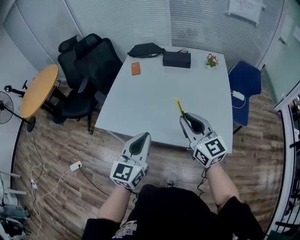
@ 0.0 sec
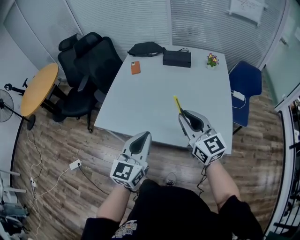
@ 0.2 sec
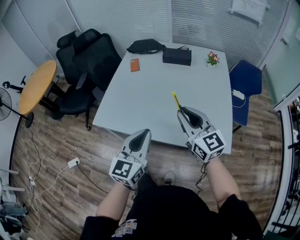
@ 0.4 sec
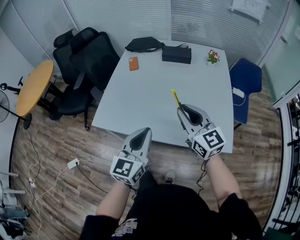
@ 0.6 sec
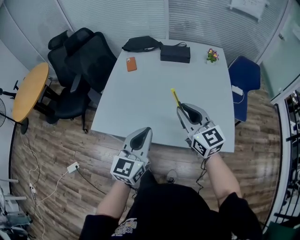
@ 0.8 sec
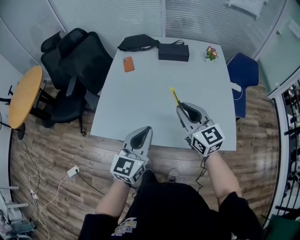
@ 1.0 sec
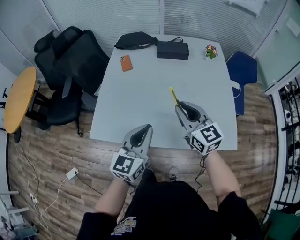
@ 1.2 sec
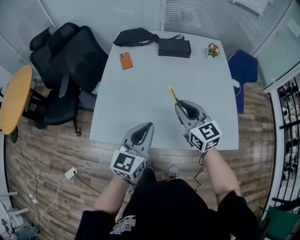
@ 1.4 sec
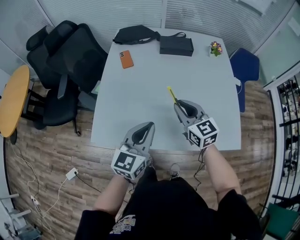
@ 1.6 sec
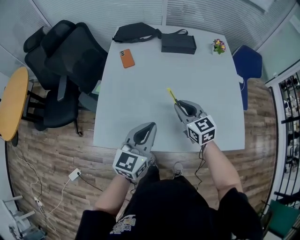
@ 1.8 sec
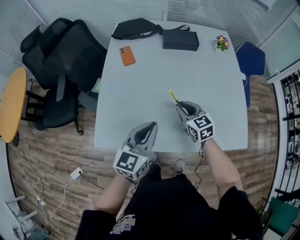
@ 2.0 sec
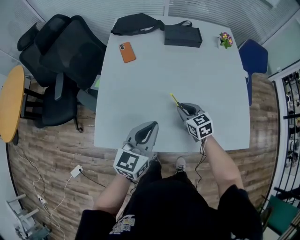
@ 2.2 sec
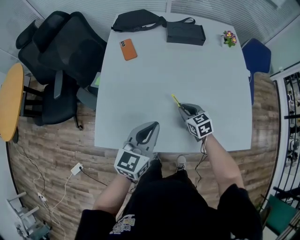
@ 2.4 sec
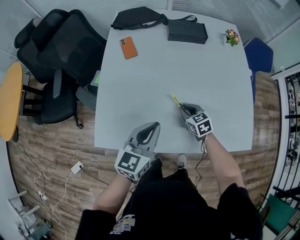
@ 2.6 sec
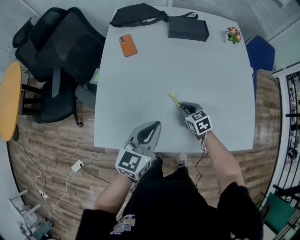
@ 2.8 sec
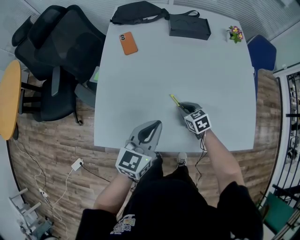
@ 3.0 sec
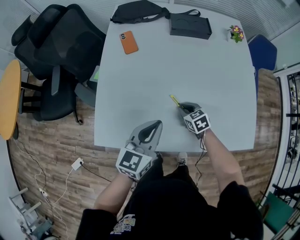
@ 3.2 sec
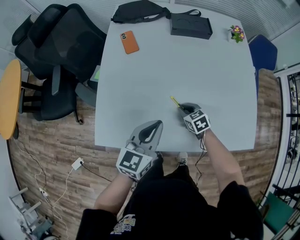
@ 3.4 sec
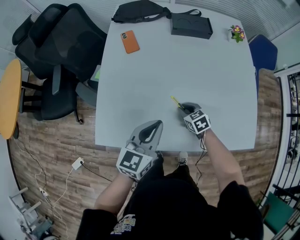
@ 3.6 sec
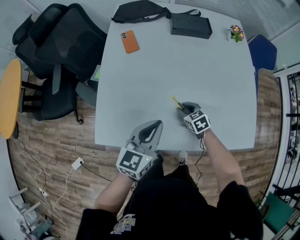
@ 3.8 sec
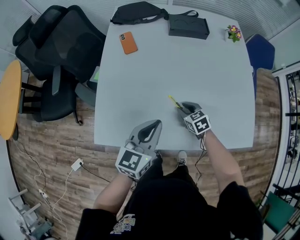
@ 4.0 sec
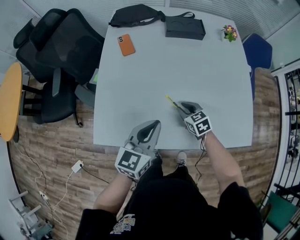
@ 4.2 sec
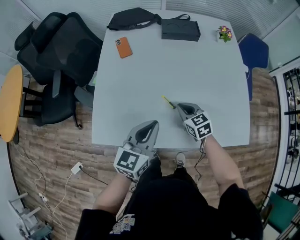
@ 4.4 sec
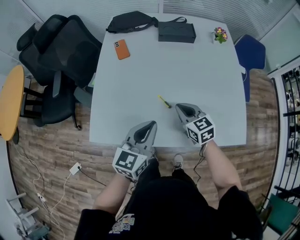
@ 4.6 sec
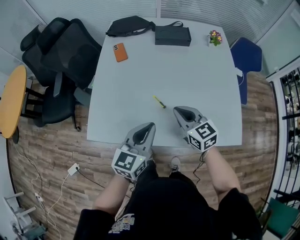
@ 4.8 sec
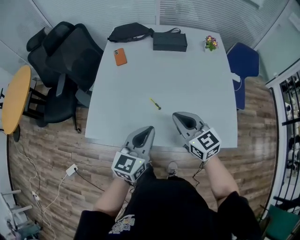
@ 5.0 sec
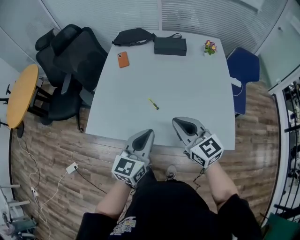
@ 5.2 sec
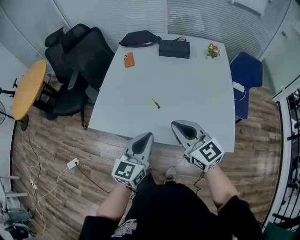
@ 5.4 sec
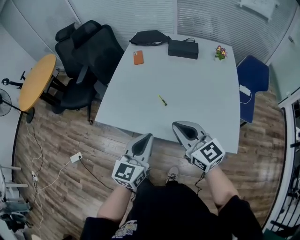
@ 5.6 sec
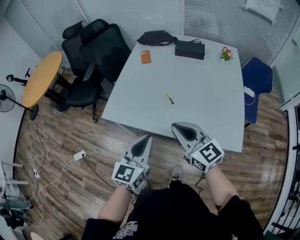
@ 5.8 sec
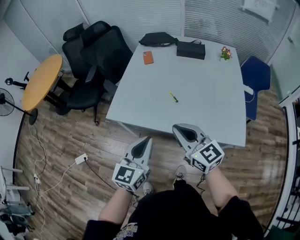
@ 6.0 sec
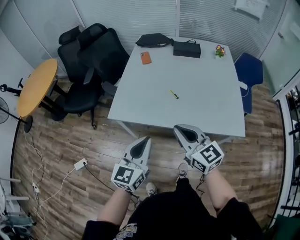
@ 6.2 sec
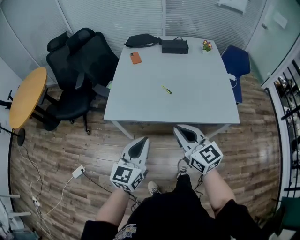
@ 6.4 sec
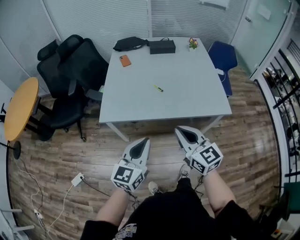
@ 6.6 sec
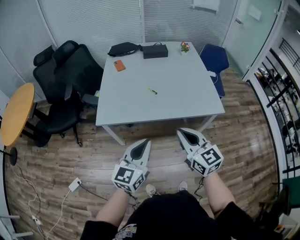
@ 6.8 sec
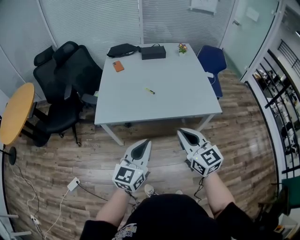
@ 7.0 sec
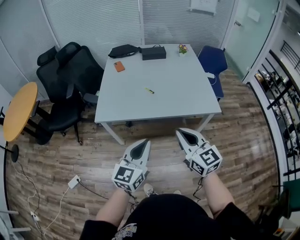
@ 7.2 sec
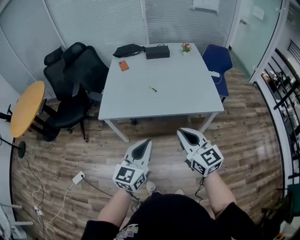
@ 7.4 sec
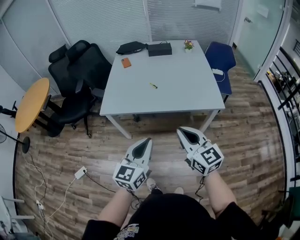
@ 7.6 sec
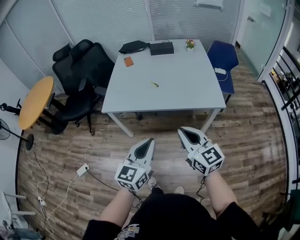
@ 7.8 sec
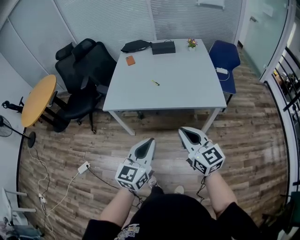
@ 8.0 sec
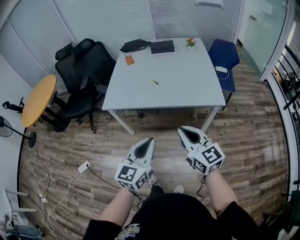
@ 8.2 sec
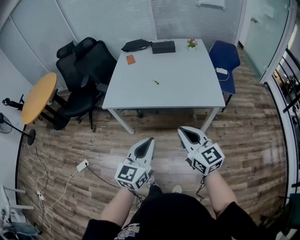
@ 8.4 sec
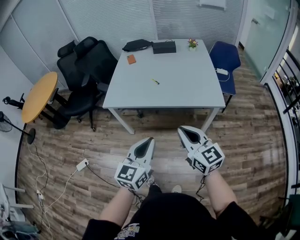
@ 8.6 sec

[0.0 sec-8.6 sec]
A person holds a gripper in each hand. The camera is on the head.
0.0 sec to 1.4 sec: The right gripper goes some 20 cm forward, to the left and downward; the left gripper heads forward and to the left, covering approximately 15 cm.
1.4 sec to 2.8 sec: The left gripper is displaced downward and forward by approximately 10 cm. Meanwhile the right gripper moves downward, approximately 30 cm, and points its fingers roughly 40 degrees further downward.
2.8 sec to 4.4 sec: The right gripper moves upward, some 5 cm.
4.4 sec to 5.8 sec: The left gripper moves backward, roughly 20 cm, and changes its angle by some 20 degrees. The right gripper is displaced upward and backward by approximately 35 cm, and tilts its fingers approximately 30 degrees upward.
5.8 sec to 7.2 sec: The right gripper shifts by roughly 20 cm, and changes its angle by approximately 30 degrees. The left gripper ends up approximately 20 cm from where it was, and changes its angle by some 20 degrees.
7.2 sec to 8.6 sec: The two grippers go roughly 10 cm backward and to the right.

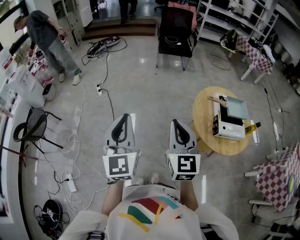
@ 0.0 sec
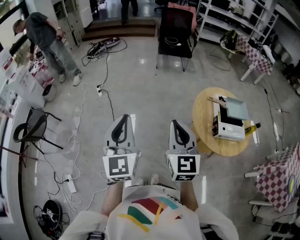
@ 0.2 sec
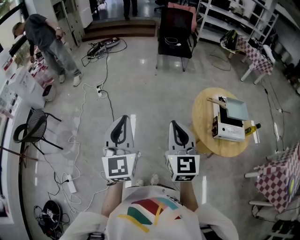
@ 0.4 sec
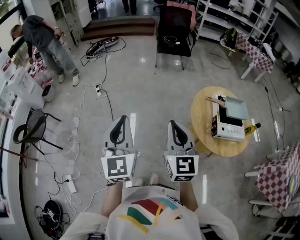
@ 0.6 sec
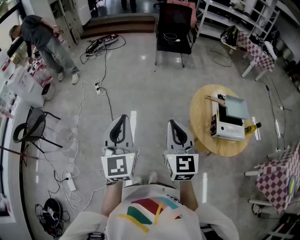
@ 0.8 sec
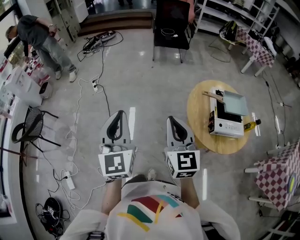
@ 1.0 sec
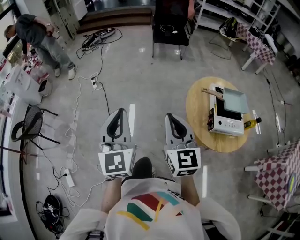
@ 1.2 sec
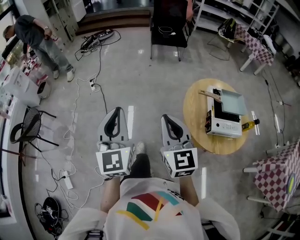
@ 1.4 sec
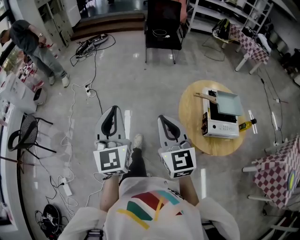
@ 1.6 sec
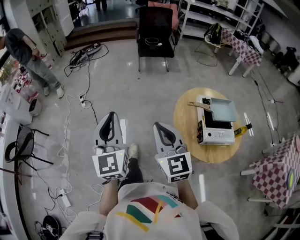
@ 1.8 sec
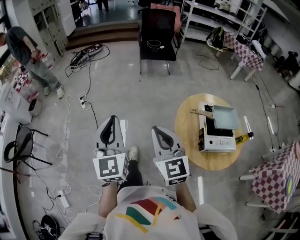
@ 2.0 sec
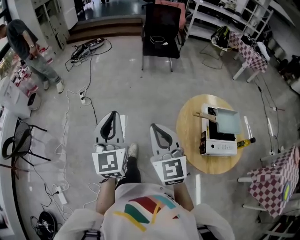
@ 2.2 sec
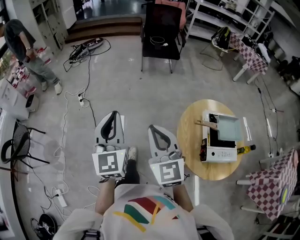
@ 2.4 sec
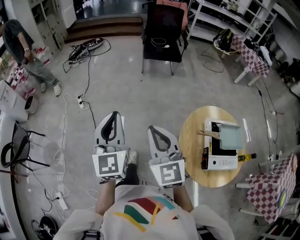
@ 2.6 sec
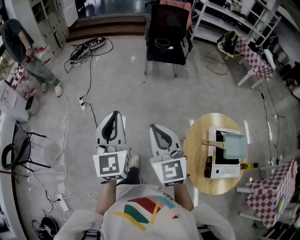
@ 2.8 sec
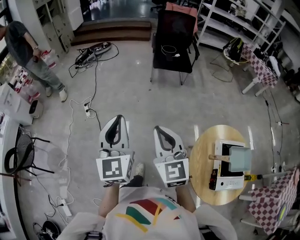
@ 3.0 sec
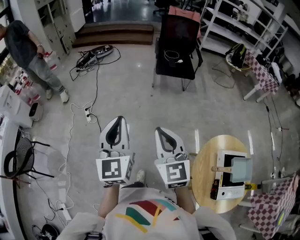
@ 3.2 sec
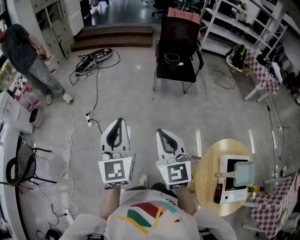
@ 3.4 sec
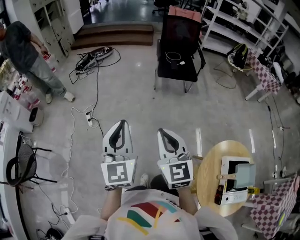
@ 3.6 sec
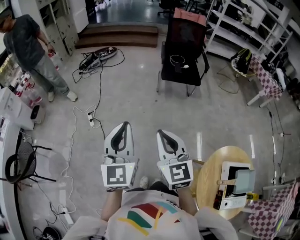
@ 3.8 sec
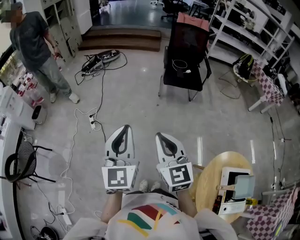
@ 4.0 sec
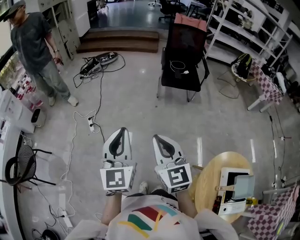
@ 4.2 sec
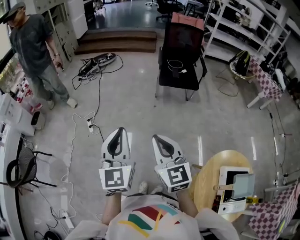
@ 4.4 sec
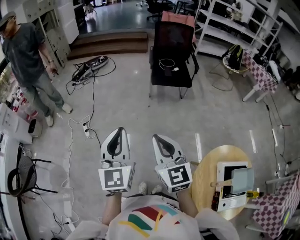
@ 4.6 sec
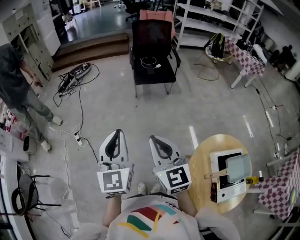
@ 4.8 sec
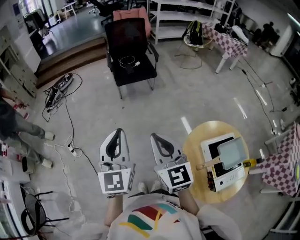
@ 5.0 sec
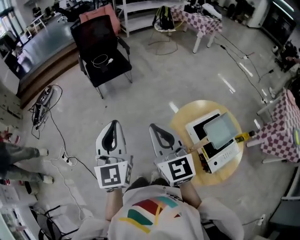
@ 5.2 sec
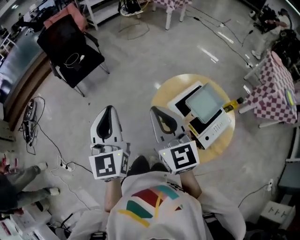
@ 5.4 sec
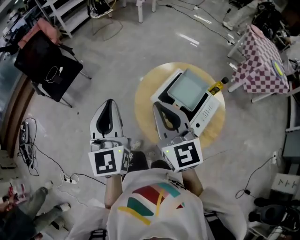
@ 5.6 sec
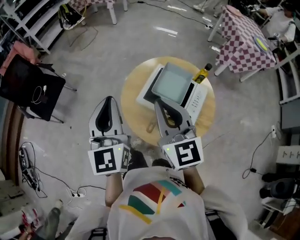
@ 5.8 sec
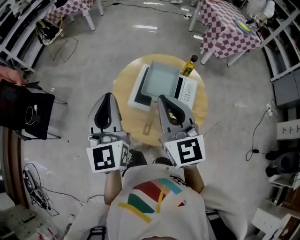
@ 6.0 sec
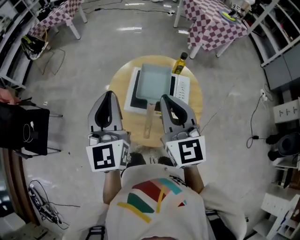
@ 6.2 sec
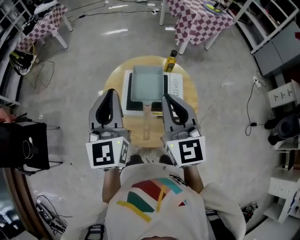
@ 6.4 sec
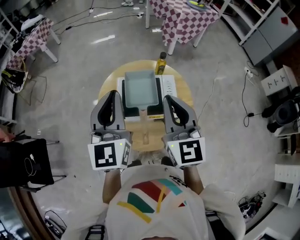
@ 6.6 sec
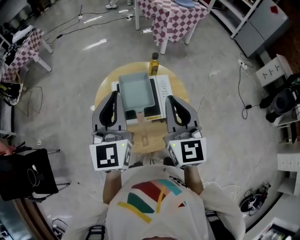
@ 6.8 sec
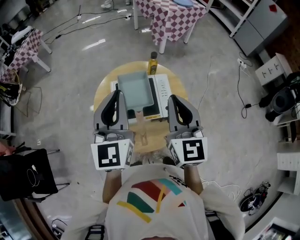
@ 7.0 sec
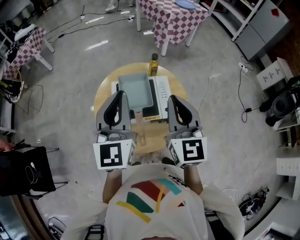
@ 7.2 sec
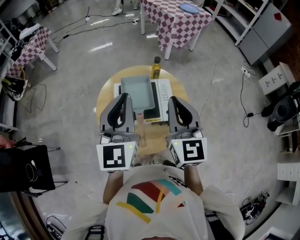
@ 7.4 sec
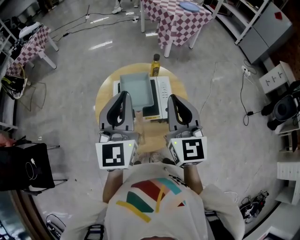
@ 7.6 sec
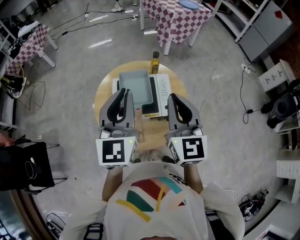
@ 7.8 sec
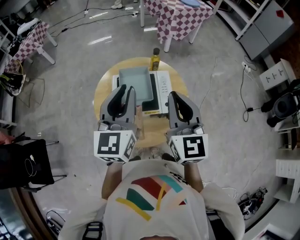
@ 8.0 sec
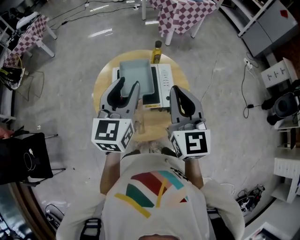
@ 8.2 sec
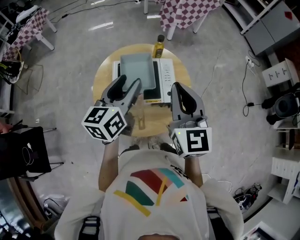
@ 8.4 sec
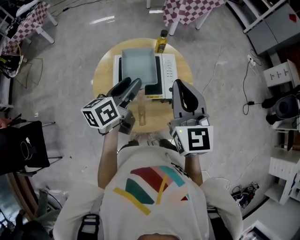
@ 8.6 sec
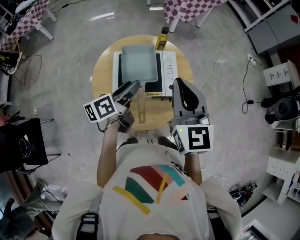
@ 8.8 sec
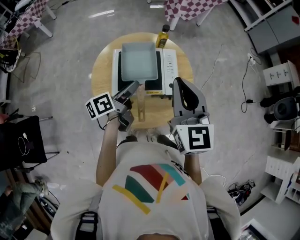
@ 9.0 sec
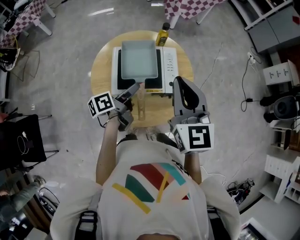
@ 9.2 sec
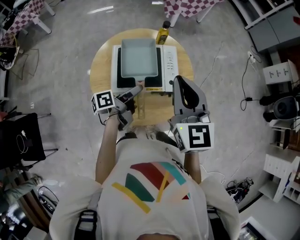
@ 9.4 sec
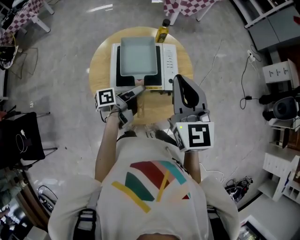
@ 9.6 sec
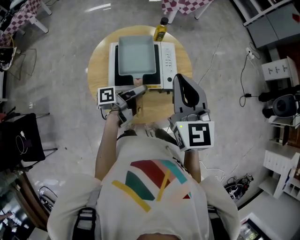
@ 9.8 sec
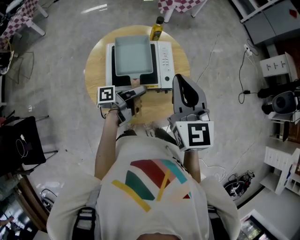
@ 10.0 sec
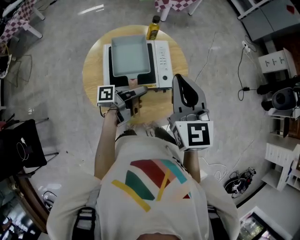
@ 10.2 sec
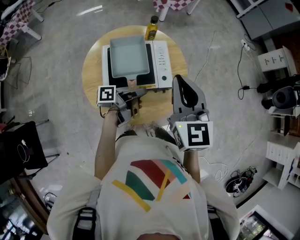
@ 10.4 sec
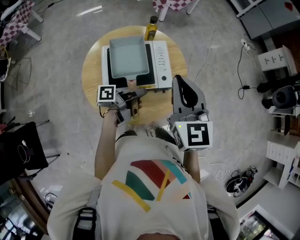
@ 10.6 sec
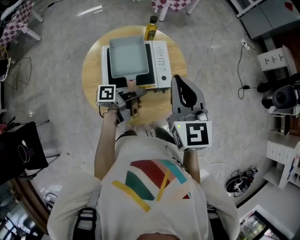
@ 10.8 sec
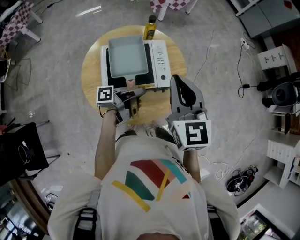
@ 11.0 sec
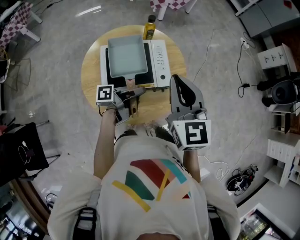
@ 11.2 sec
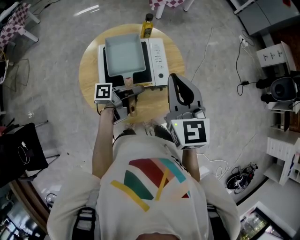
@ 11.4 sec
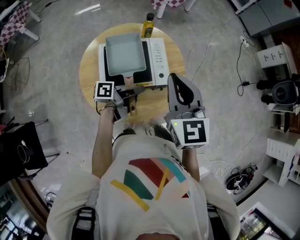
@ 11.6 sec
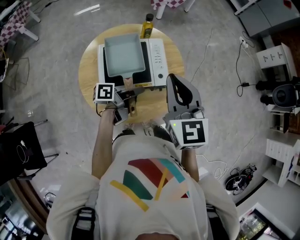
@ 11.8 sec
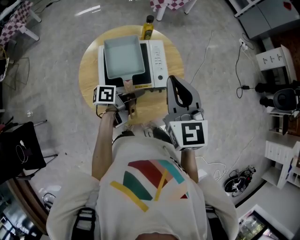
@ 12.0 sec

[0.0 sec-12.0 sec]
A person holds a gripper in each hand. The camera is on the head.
0.0 sec to 1.6 sec: The right gripper moves to the right, some 5 cm, while the left gripper moves to the right and forward, about 10 cm.
1.6 sec to 3.0 sec: Both grippers travel together forward, approximately 30 cm.
3.0 sec to 4.4 sec: The two grippers go approximately 15 cm forward.
4.4 sec to 6.0 sec: The two grippers travel together, roughly 60 cm. The right gripper swivels some 80 degrees; the left gripper turns by roughly 80 degrees.
6.0 sec to 7.6 sec: The right gripper ends up roughly 10 cm from where it was, and rotates approximately 30 degrees. The left gripper moves about 15 cm, and turns by roughly 30 degrees.
7.6 sec to 9.0 sec: The left gripper is displaced downward by roughly 25 cm, rolls counterclockwise, seen from behind, by approximately 70 degrees, and opens its fingers.
9.0 sec to 10.4 sec: The left gripper is displaced to the right by approximately 10 cm, rotates about 40 degrees, and closes up.
10.4 sec to 12.0 sec: There are only small adjustments of the grippers.

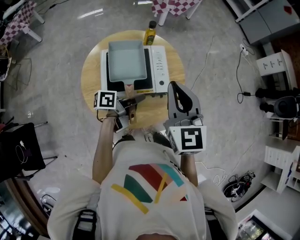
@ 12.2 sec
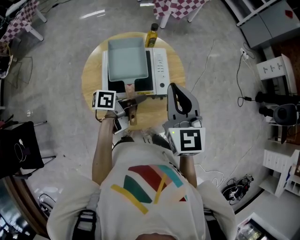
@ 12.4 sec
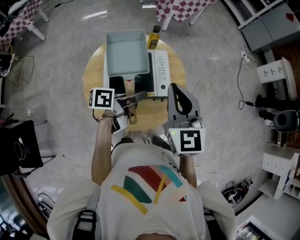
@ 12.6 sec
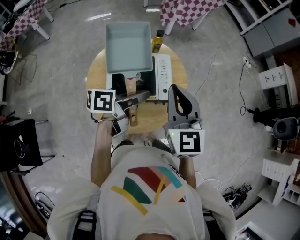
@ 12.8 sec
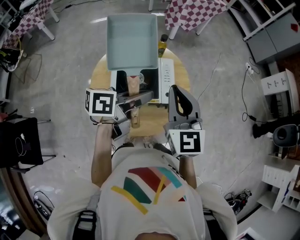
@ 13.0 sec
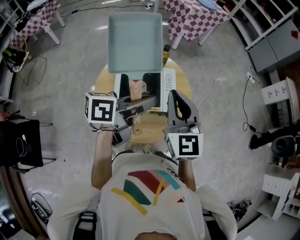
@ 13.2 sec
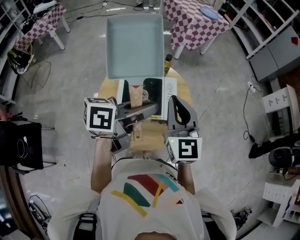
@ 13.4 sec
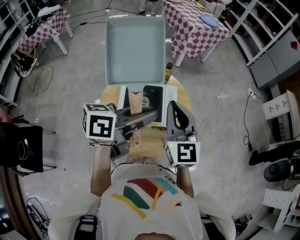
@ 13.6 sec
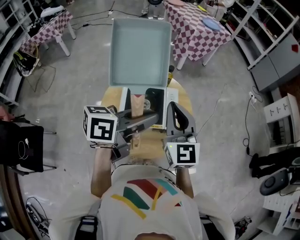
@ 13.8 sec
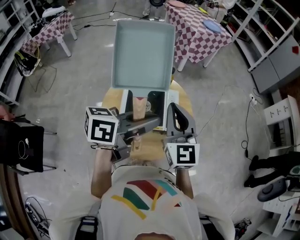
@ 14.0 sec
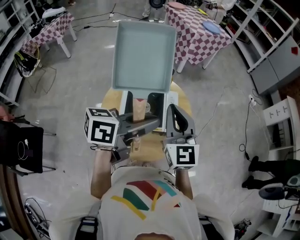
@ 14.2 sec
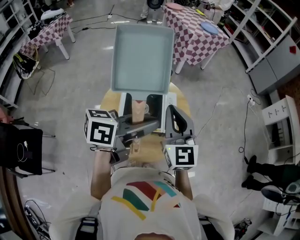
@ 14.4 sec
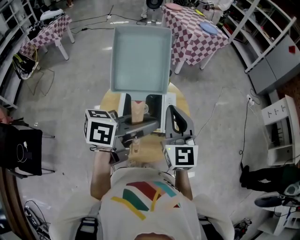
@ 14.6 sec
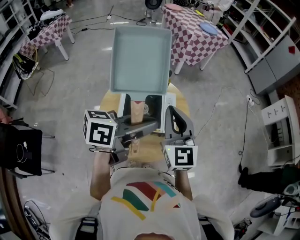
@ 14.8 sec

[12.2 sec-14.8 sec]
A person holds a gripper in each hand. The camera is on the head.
12.2 sec to 13.4 sec: The left gripper travels upward by about 25 cm, and swivels some 30 degrees. The right gripper ends up about 5 cm from where it was.
13.4 sec to 14.8 sec: There are only small adjustments of the grippers.
